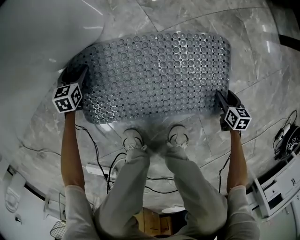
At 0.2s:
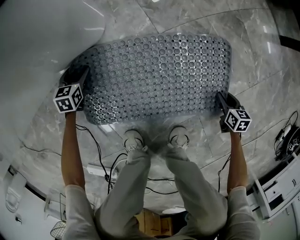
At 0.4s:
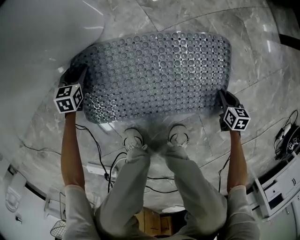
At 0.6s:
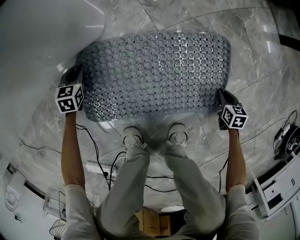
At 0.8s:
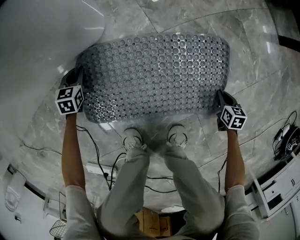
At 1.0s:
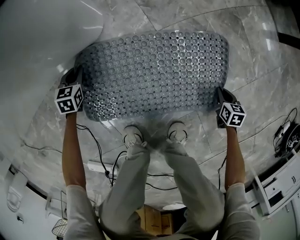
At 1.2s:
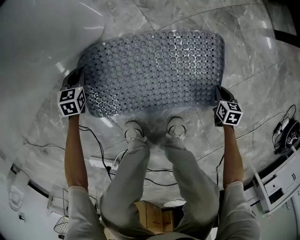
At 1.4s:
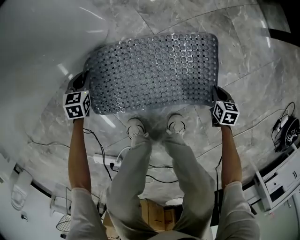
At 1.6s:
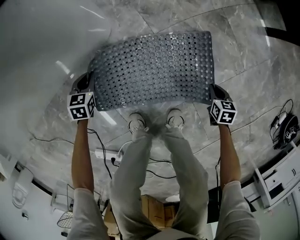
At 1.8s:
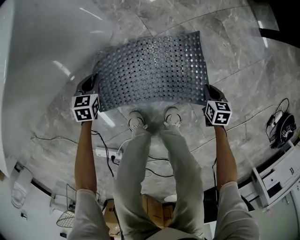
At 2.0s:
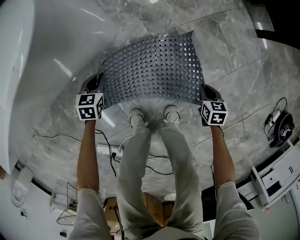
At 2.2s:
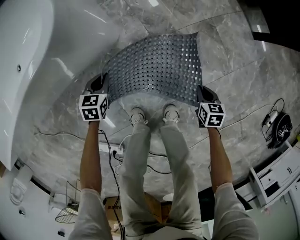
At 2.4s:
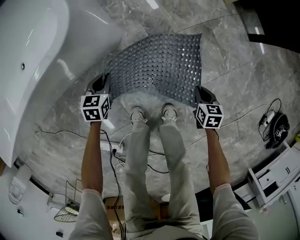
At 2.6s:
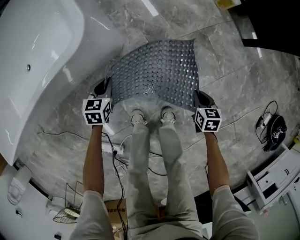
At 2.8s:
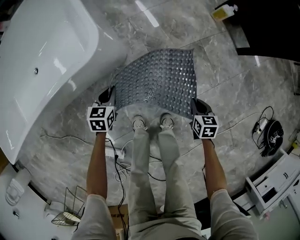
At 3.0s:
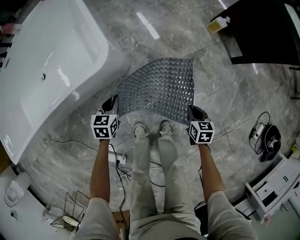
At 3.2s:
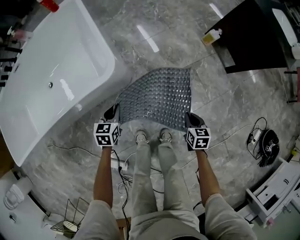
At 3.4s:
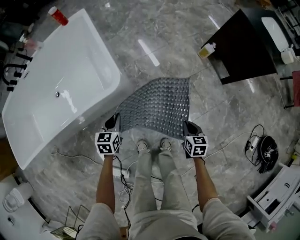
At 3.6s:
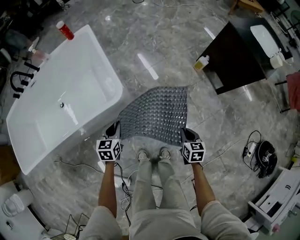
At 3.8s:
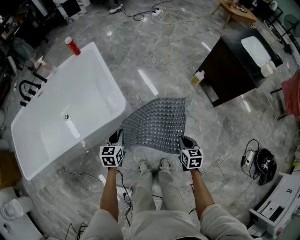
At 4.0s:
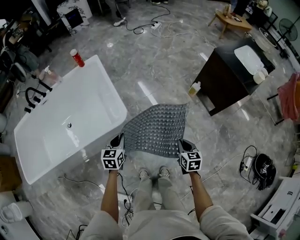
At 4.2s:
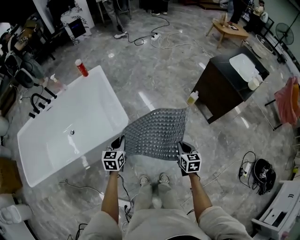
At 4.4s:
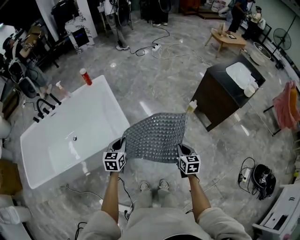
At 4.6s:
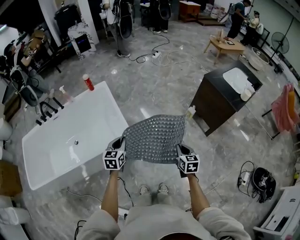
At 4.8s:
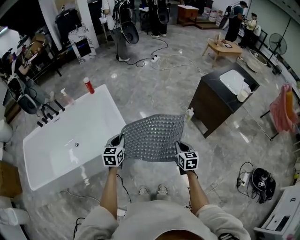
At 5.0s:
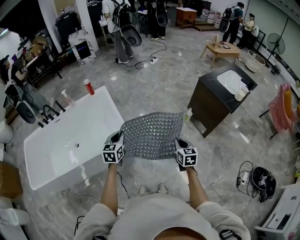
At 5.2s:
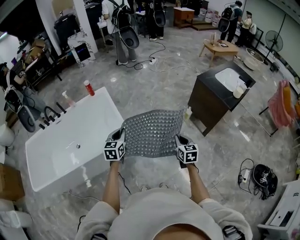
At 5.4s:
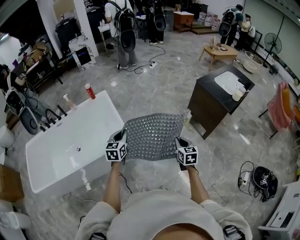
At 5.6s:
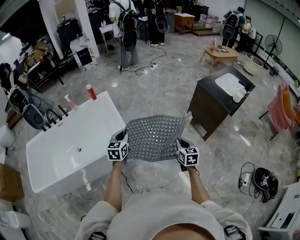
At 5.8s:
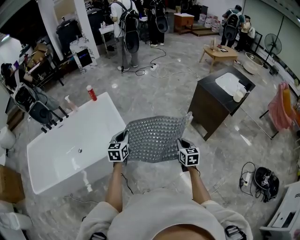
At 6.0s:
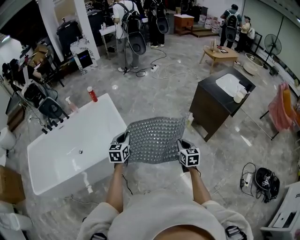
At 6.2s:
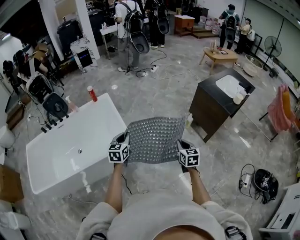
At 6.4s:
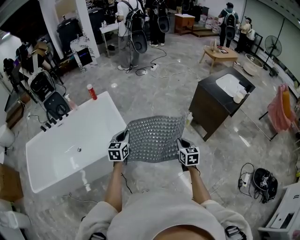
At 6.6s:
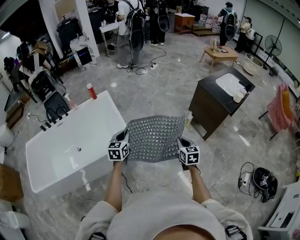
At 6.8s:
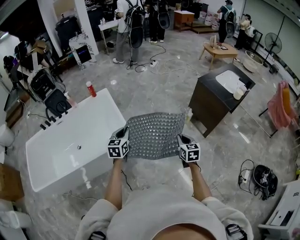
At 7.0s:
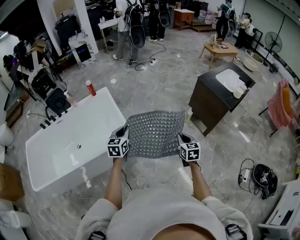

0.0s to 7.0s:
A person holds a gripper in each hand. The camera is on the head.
0.0s to 1.4s: Both grippers move upward, roughly 10 cm. The left gripper closes its fingers. The right gripper closes up.
1.4s to 2.8s: Both grippers move upward, roughly 30 cm.
2.8s to 4.2s: The two grippers go roughly 40 cm upward. The right gripper swivels roughly 20 degrees.
4.2s to 5.6s: The two grippers go roughly 15 cm upward.
5.6s to 7.0s: Both grippers stay put.

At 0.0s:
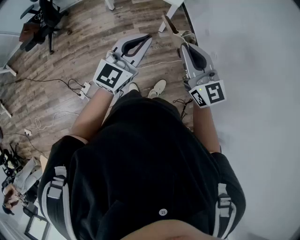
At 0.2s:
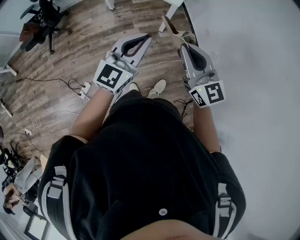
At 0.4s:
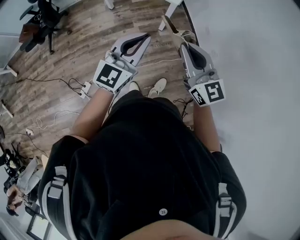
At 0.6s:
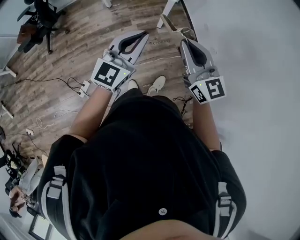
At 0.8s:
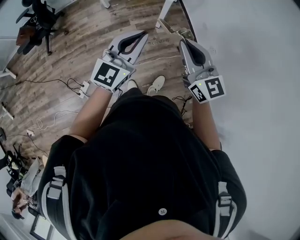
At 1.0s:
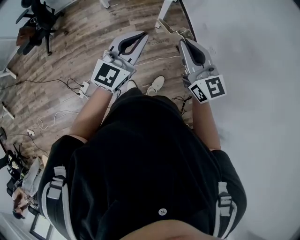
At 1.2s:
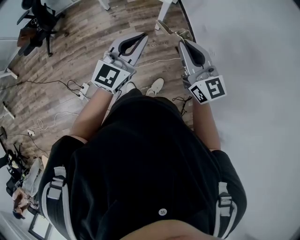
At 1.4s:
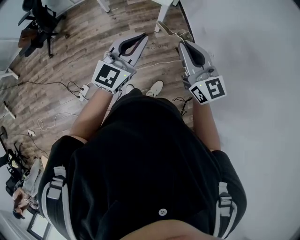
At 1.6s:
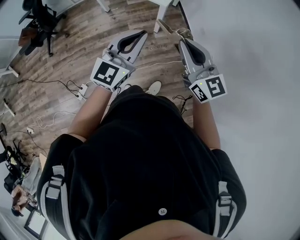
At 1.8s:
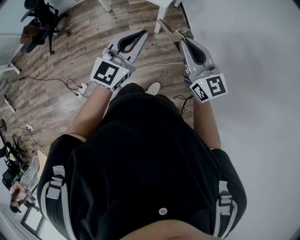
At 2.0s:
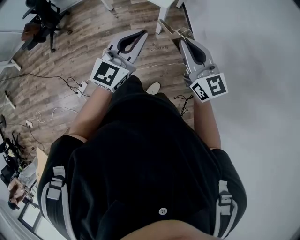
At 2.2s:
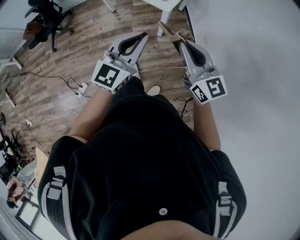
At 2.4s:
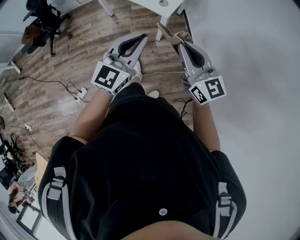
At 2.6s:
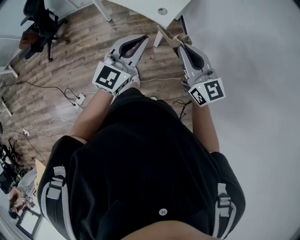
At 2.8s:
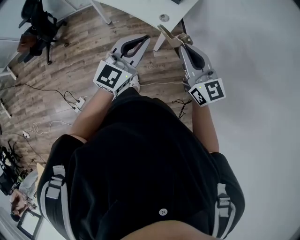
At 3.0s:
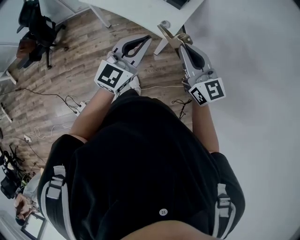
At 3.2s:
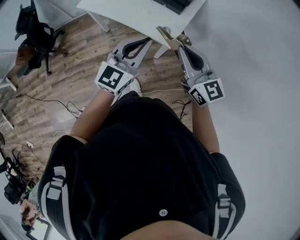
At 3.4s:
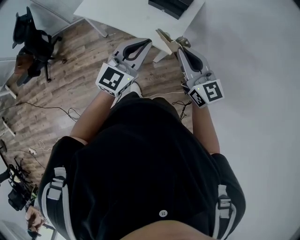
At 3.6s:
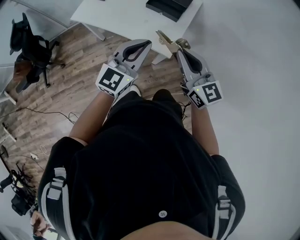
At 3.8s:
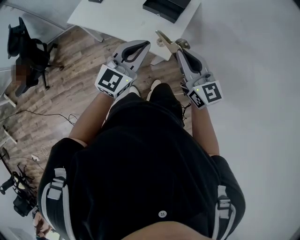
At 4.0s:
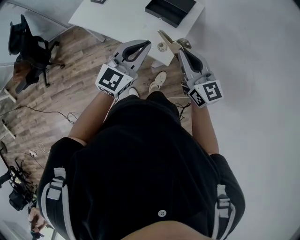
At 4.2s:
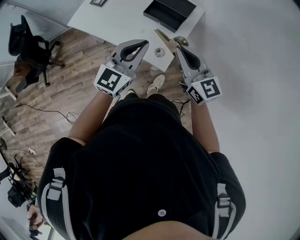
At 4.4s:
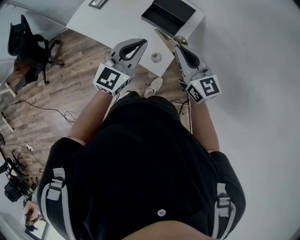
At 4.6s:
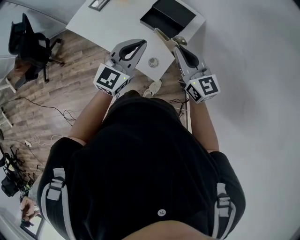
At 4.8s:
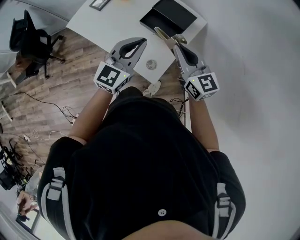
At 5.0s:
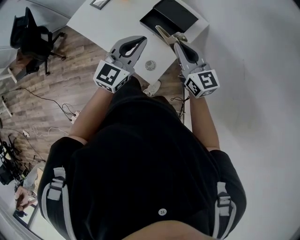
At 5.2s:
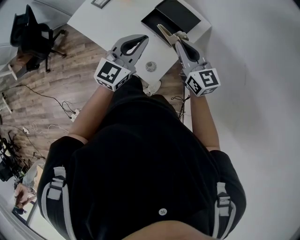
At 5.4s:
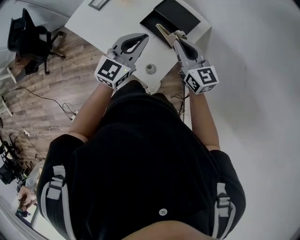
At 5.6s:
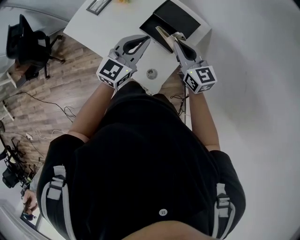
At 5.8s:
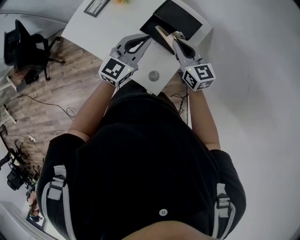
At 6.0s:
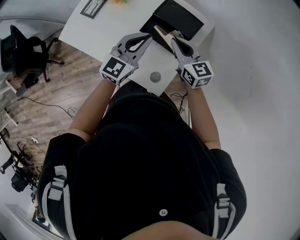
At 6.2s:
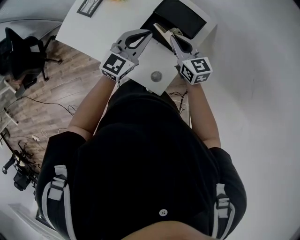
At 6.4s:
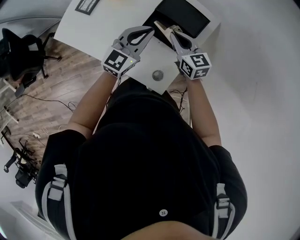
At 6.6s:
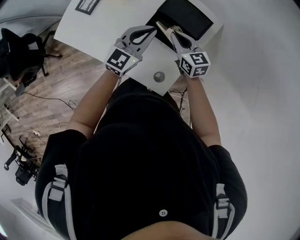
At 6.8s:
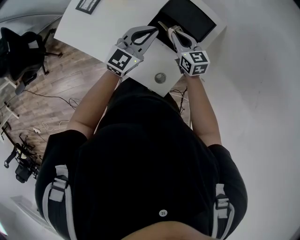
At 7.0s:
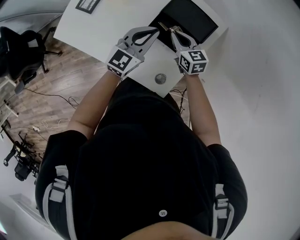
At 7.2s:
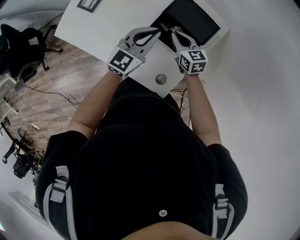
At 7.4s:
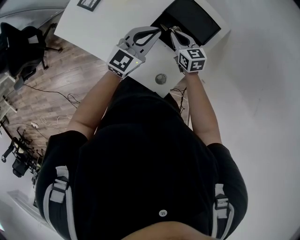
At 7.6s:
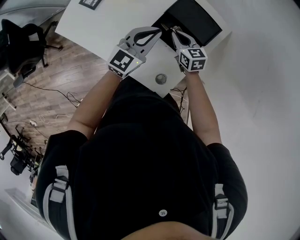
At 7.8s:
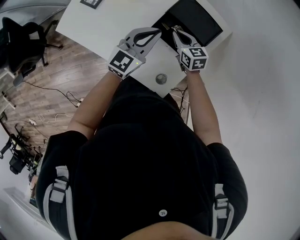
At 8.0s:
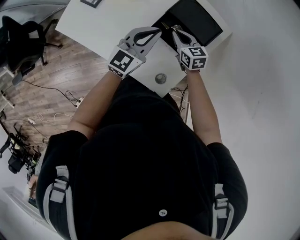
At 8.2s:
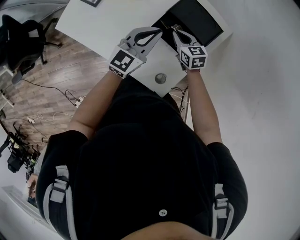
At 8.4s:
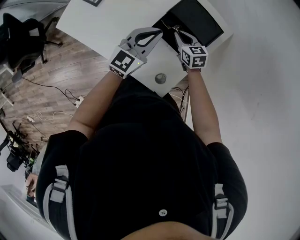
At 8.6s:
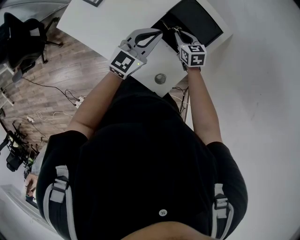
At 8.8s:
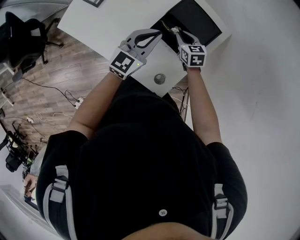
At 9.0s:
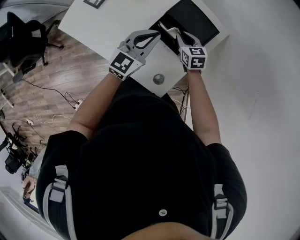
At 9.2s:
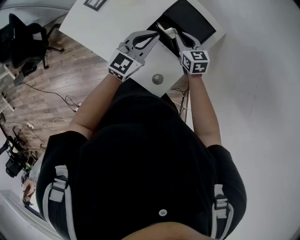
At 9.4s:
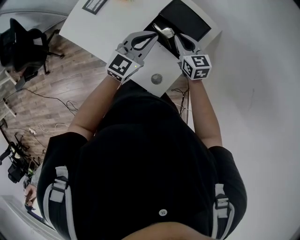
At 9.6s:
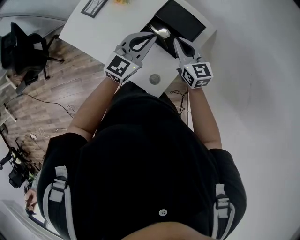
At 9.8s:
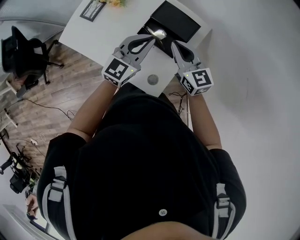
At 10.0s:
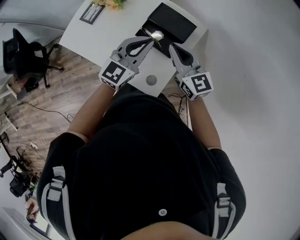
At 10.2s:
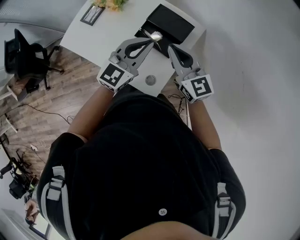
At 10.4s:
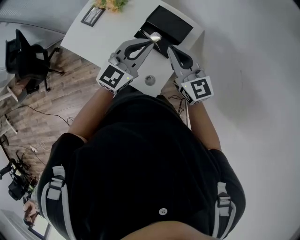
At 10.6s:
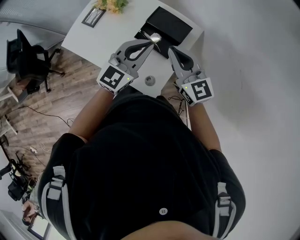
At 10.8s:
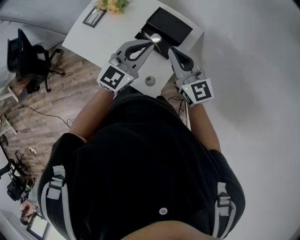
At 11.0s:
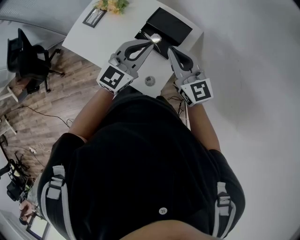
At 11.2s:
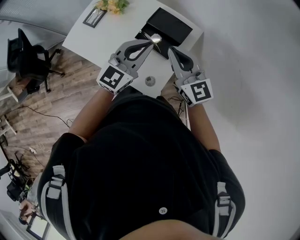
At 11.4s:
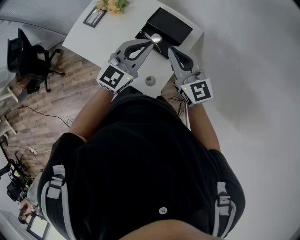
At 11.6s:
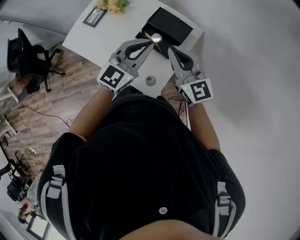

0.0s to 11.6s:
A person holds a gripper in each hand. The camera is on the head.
0.0s to 1.4s: Both grippers move to the right, roughly 5 cm.
1.4s to 2.8s: Both grippers travel together forward, some 20 cm.
2.8s to 4.4s: Both grippers move forward, some 30 cm.
4.4s to 5.8s: Both grippers move forward and downward, some 20 cm.
5.8s to 7.2s: The right gripper heads downward, covering some 20 cm; the left gripper heads downward and forward, covering some 10 cm.
7.2s to 8.8s: The grippers move only a little.
8.8s to 10.2s: The left gripper moves upward and backward, some 15 cm. Meanwhile the right gripper travels upward by about 30 cm, and tips its fingers upward by about 40 degrees.
10.2s to 11.6s: The grippers stay close to where they were, moving slightly.

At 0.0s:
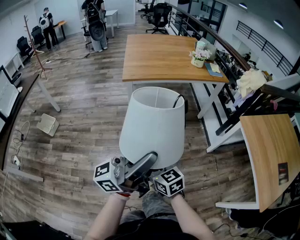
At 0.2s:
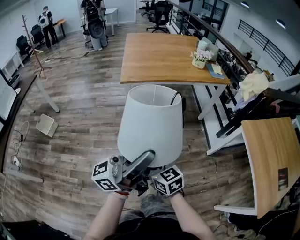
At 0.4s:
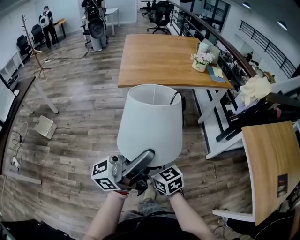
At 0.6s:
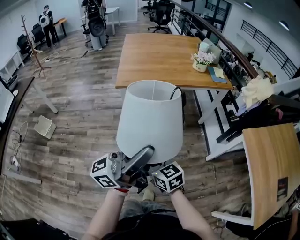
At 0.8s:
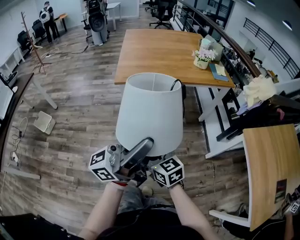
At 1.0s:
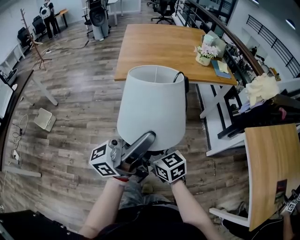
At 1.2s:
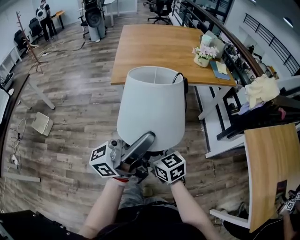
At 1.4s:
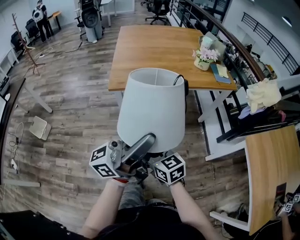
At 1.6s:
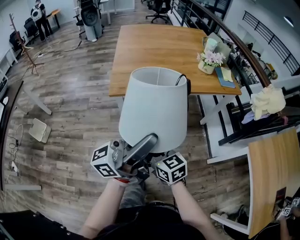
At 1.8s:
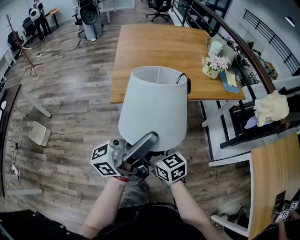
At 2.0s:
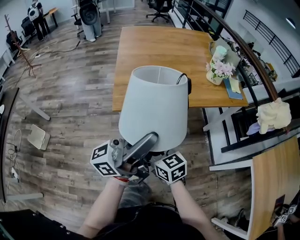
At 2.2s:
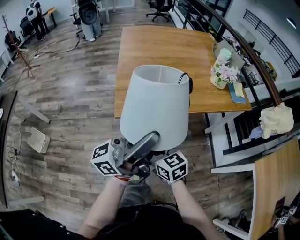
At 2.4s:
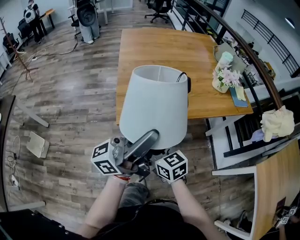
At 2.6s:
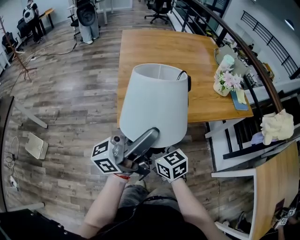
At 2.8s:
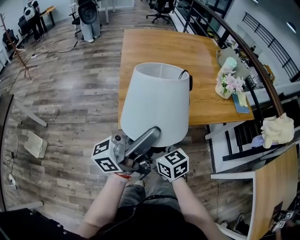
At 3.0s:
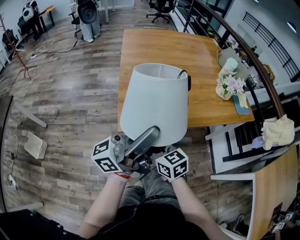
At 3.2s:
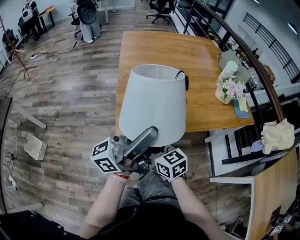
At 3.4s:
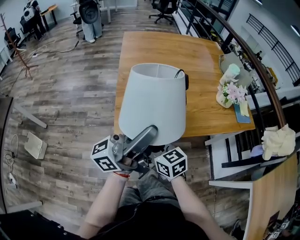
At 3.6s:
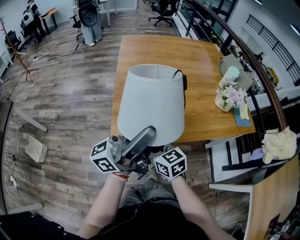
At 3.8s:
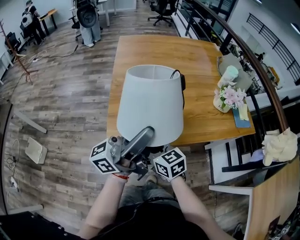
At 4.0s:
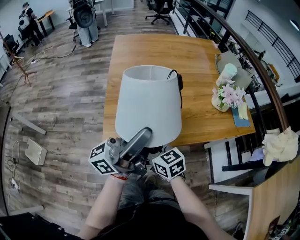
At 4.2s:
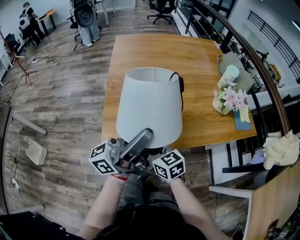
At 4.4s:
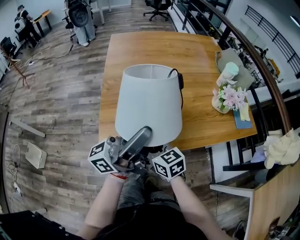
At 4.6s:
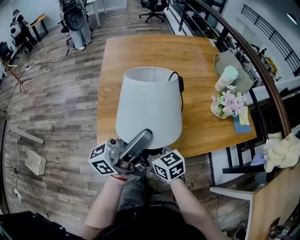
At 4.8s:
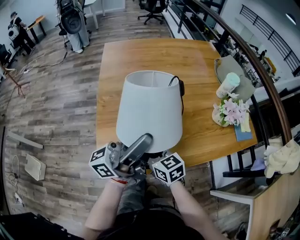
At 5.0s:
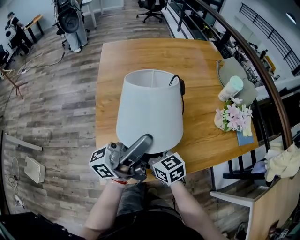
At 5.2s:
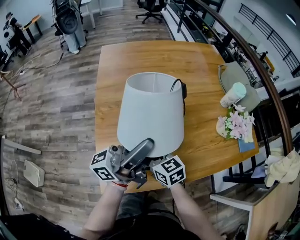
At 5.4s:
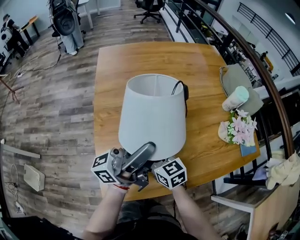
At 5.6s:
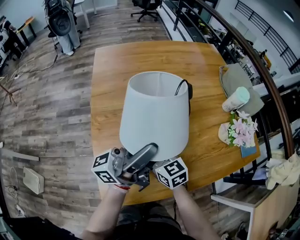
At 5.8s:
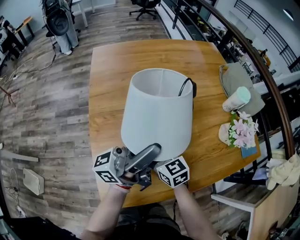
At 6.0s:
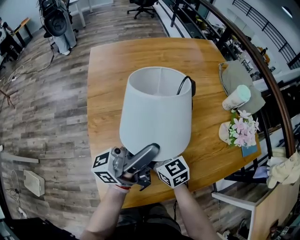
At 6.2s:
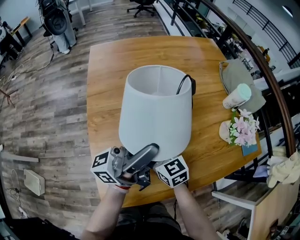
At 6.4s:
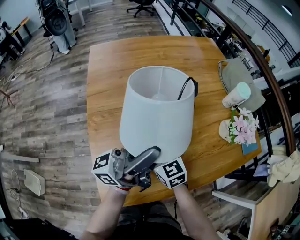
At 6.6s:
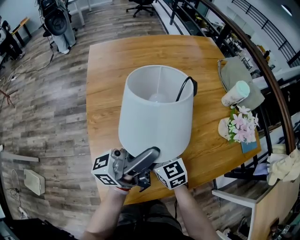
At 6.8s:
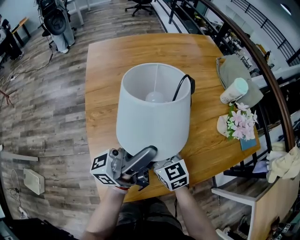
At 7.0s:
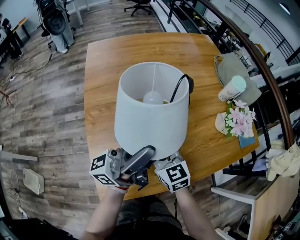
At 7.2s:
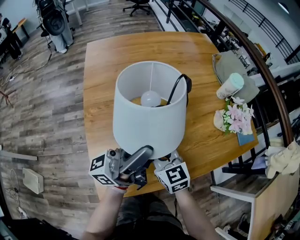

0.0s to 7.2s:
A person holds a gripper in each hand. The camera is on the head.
0.0s to 1.4s: Both grippers travel together forward, some 25 cm.
1.4s to 2.8s: The two grippers go about 30 cm forward and to the left.
2.8s to 4.4s: The grippers both shift forward and to the right by about 15 cm.
4.4s to 5.8s: The grippers both shift forward by approximately 20 cm.
5.8s to 7.2s: The left gripper changes place by about 5 cm, while the right gripper ends up approximately 5 cm from where it was, and closes its fingers.
